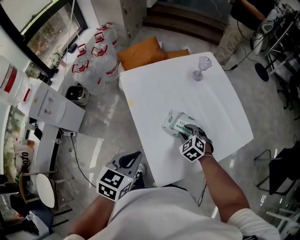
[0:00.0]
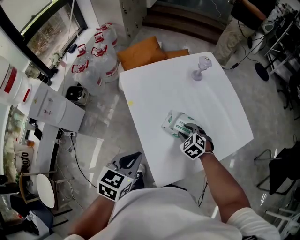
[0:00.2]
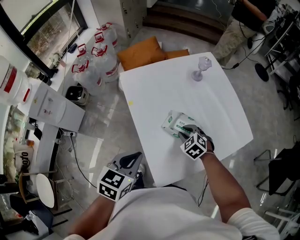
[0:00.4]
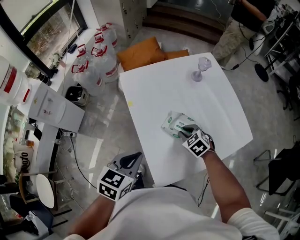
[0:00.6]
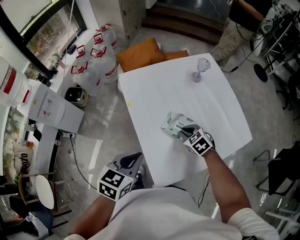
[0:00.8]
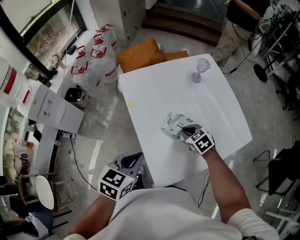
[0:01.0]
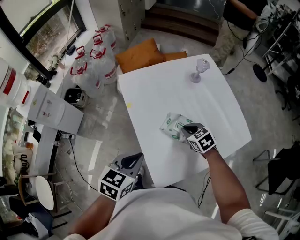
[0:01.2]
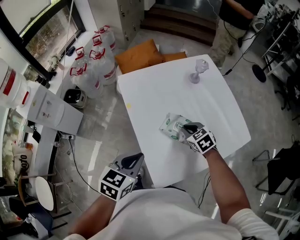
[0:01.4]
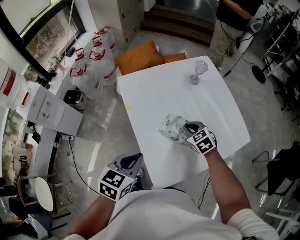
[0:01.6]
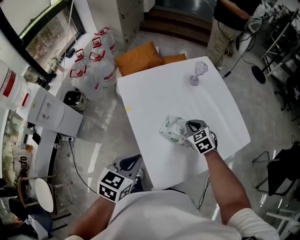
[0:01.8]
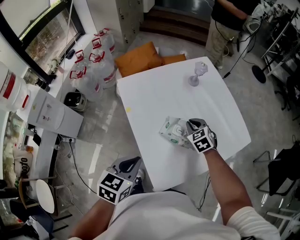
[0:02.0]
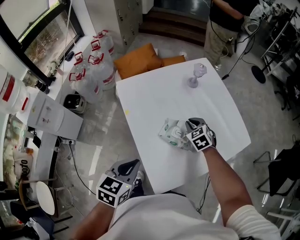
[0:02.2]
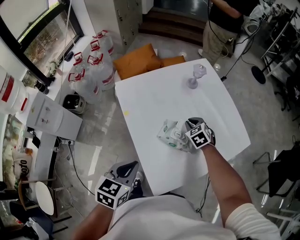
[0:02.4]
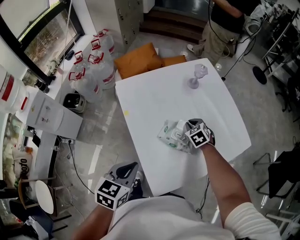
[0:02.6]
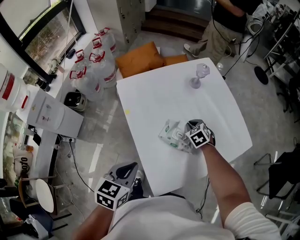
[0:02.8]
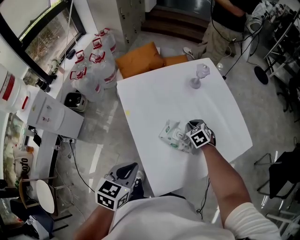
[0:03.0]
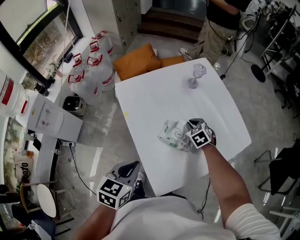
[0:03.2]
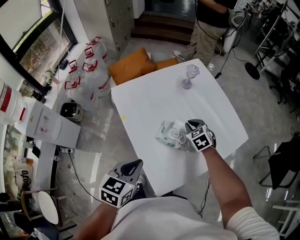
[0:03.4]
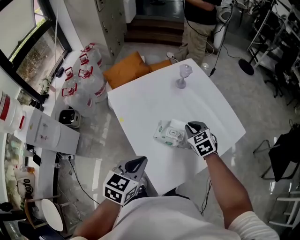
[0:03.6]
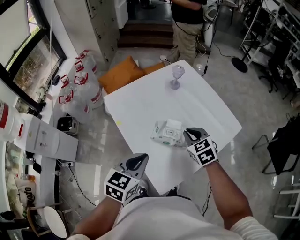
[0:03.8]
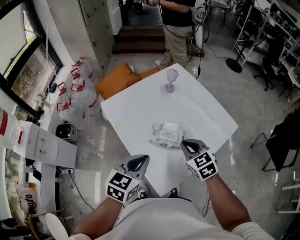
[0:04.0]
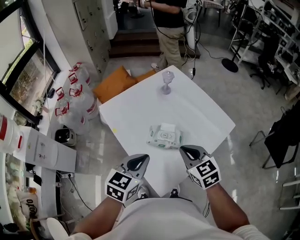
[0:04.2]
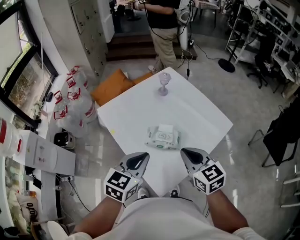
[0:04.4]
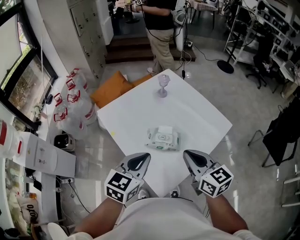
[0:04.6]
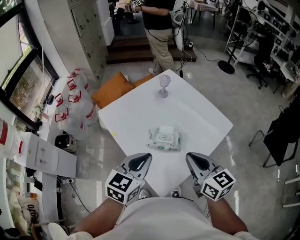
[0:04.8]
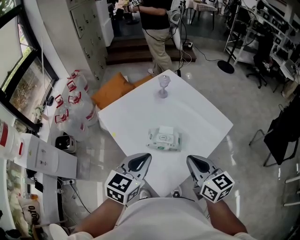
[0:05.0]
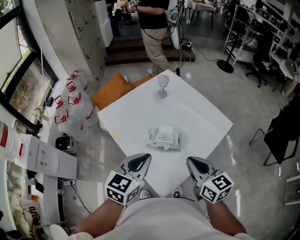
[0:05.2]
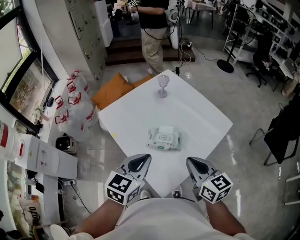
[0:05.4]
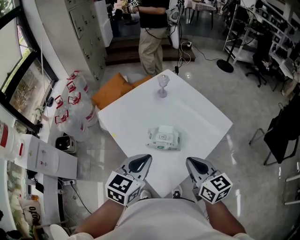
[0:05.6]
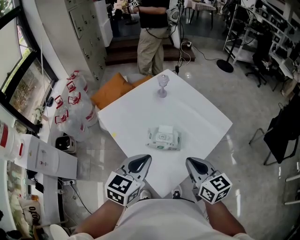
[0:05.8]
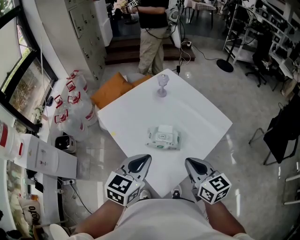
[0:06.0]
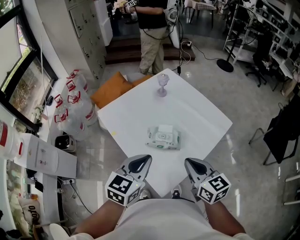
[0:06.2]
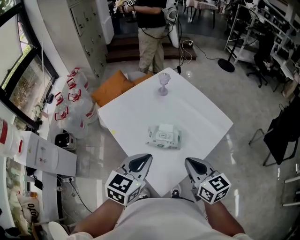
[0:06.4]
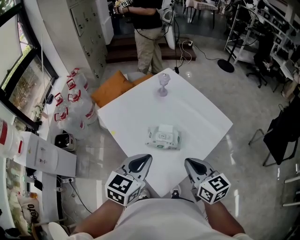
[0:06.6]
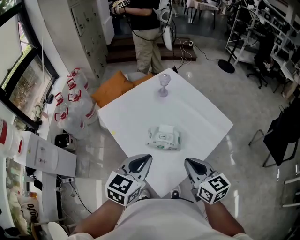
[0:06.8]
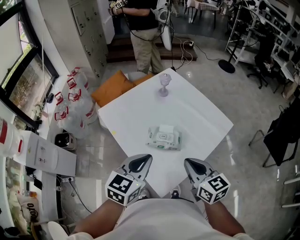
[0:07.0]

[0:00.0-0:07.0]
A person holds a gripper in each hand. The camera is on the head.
0.0 to 1.4 s: The right gripper swivels some 20 degrees, and closes up.
1.4 to 2.8 s: The right gripper shifts some 10 cm forward and downward.
2.8 to 4.2 s: The right gripper heads upward and backward, covering approximately 30 cm, and turns by roughly 30 degrees. The left gripper travels upward and to the right by about 10 cm, and changes its angle by about 20 degrees.
4.2 to 5.6 s: The right gripper heads backward, covering roughly 5 cm, and rotates about 30 degrees.
5.6 to 7.0 s: Both grippers stay put.

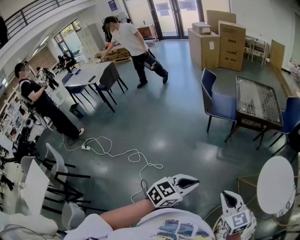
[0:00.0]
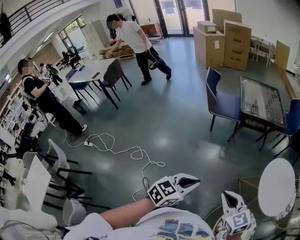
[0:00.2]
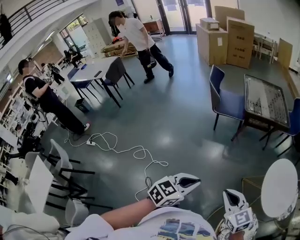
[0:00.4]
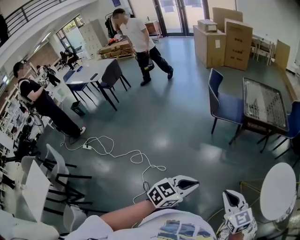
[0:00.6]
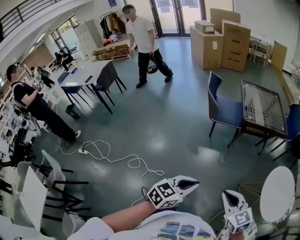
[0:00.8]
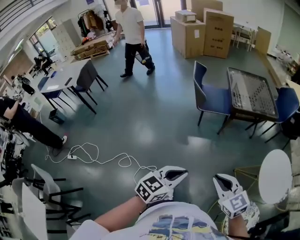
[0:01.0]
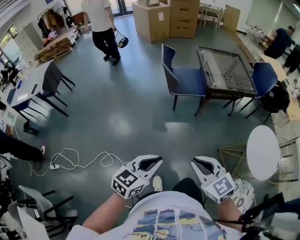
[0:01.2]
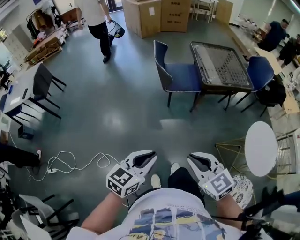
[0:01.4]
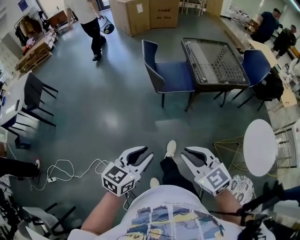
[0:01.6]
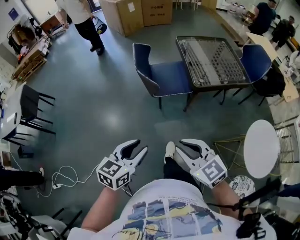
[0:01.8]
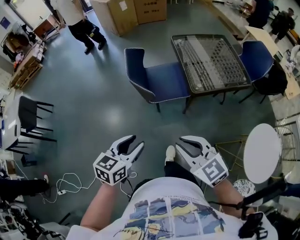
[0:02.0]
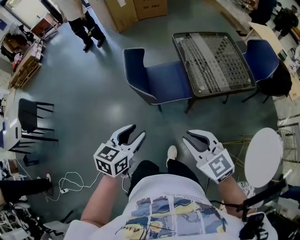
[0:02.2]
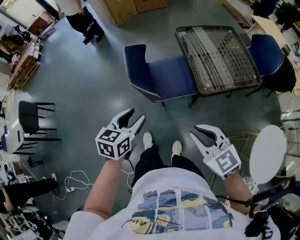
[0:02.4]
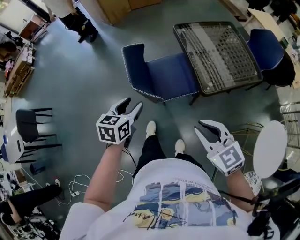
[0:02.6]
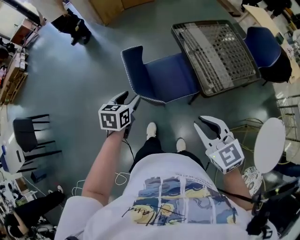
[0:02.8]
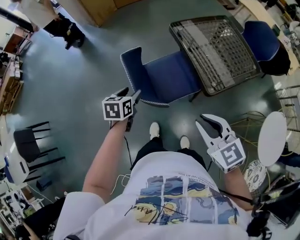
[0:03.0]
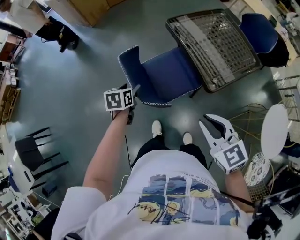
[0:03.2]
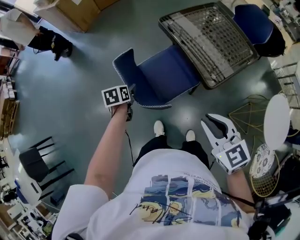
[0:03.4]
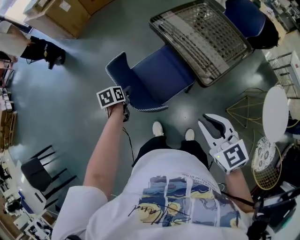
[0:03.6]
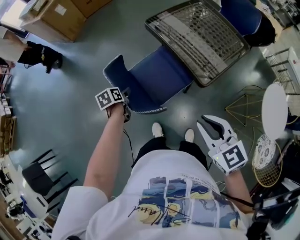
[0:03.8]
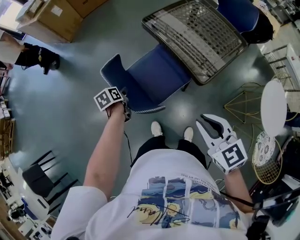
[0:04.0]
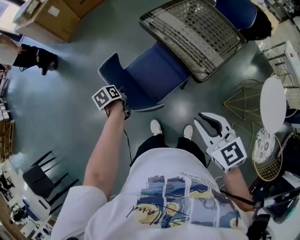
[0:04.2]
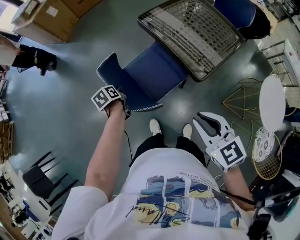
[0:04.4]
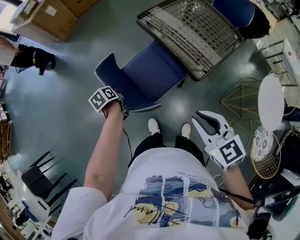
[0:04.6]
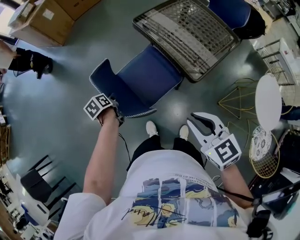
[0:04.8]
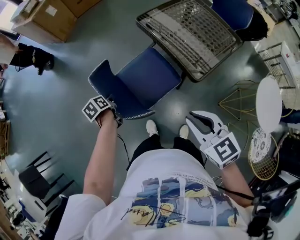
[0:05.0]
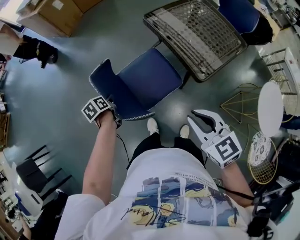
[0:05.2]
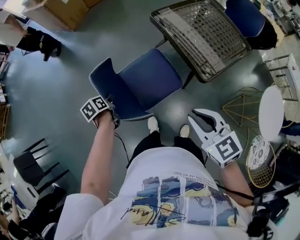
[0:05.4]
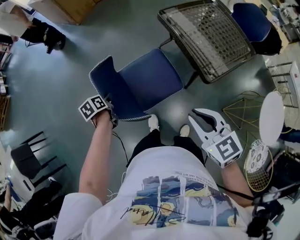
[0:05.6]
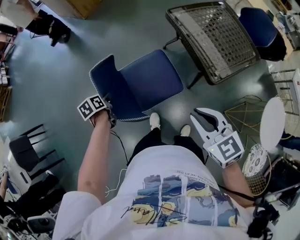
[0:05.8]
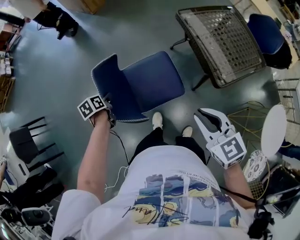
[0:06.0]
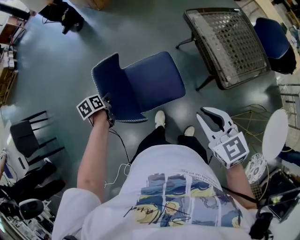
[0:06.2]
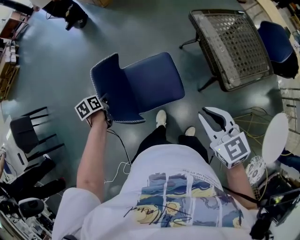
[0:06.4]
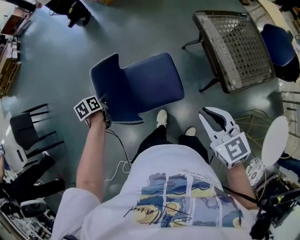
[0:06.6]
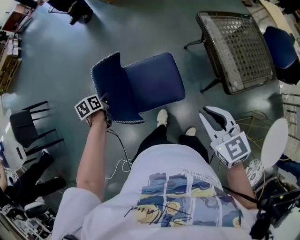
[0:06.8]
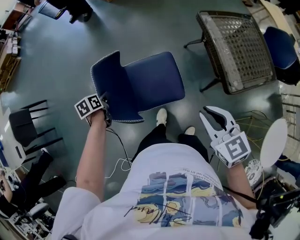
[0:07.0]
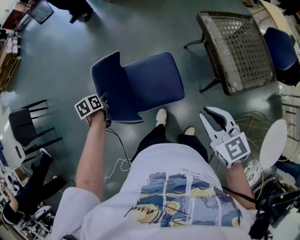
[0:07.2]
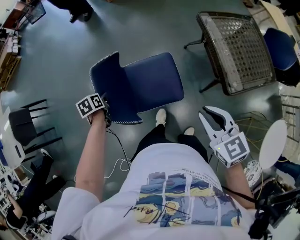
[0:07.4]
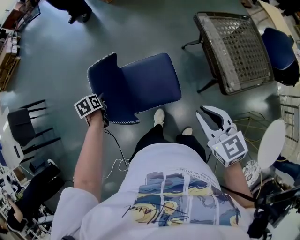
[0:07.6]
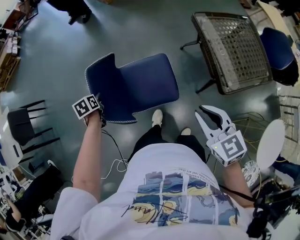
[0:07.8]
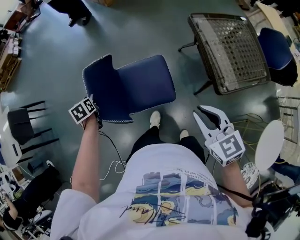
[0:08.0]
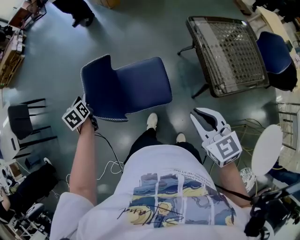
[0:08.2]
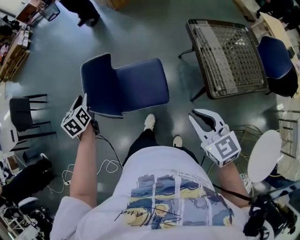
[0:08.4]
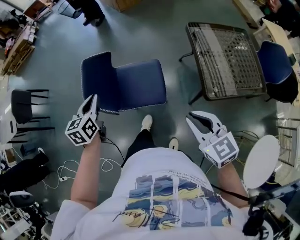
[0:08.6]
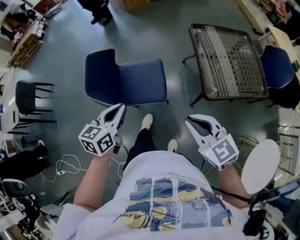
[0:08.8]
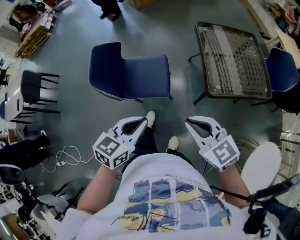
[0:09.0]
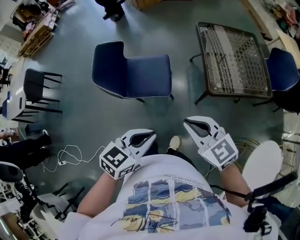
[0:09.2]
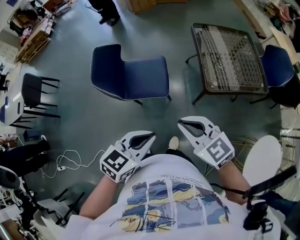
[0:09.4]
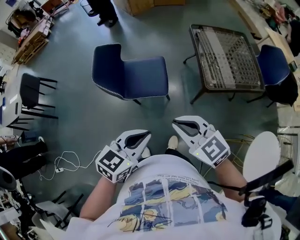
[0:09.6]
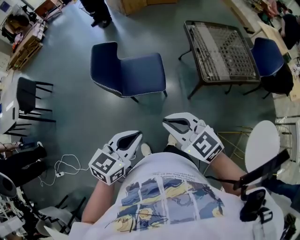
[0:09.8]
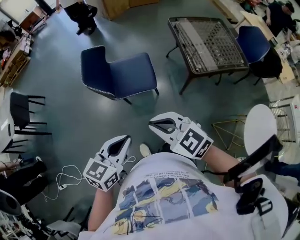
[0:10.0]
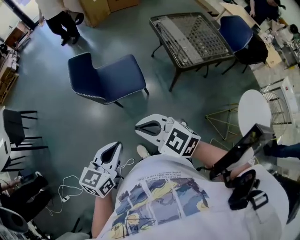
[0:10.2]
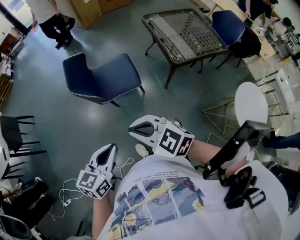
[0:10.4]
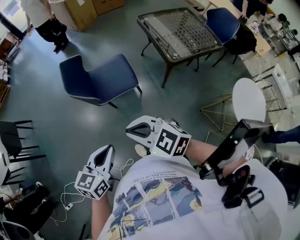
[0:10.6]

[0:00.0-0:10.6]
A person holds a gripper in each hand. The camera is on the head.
0.0 to 1.6 s: The pair of grippers is taken forward and to the left, roughly 40 cm.
1.6 to 3.0 s: The pair of grippers is taken forward, about 60 cm. The left gripper turns by about 20 degrees, and opens, while the right gripper changes its angle by about 20 degrees.
3.0 to 4.6 s: The left gripper heads downward and forward, covering approximately 15 cm, turns by some 30 degrees, and closes up.
4.6 to 6.0 s: The left gripper is displaced to the left and backward by about 20 cm; the right gripper moves to the left, roughly 10 cm.
6.0 to 7.6 s: The left gripper travels to the left by some 10 cm.
7.6 to 9.0 s: The left gripper moves backward, to the right and upward, roughly 60 cm, angles its fingers upward, by roughly 40 degrees, and closes its fingers, while the right gripper travels backward by some 20 cm, and rotates approximately 20 degrees.
9.0 to 10.6 s: The right gripper heads to the left and backward, covering approximately 30 cm. Meanwhile the left gripper goes some 30 cm backward and to the left.

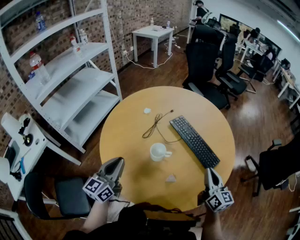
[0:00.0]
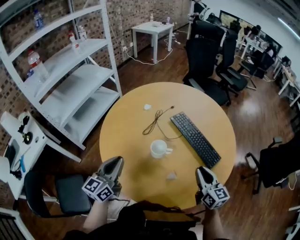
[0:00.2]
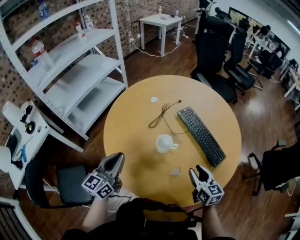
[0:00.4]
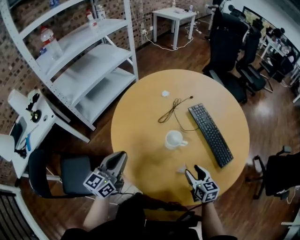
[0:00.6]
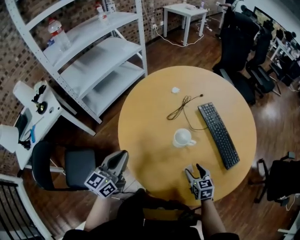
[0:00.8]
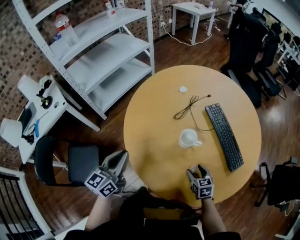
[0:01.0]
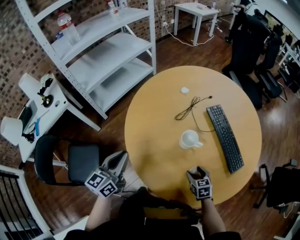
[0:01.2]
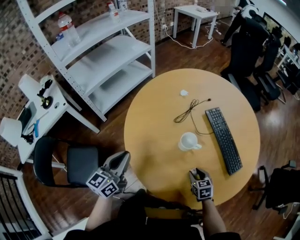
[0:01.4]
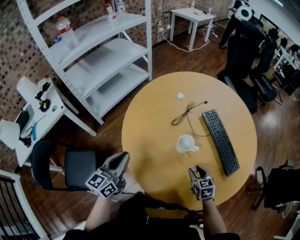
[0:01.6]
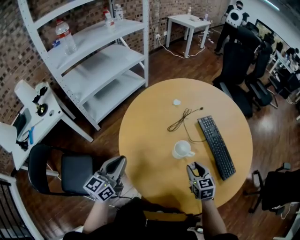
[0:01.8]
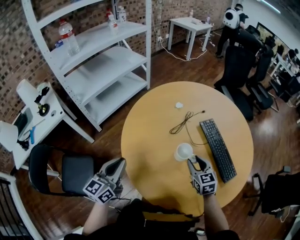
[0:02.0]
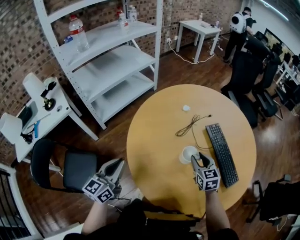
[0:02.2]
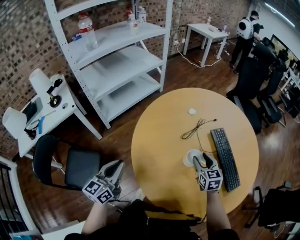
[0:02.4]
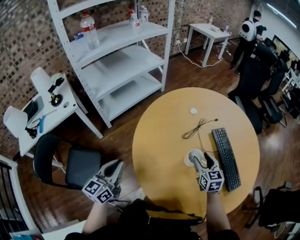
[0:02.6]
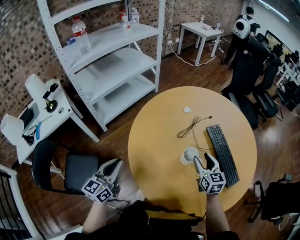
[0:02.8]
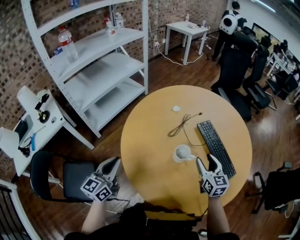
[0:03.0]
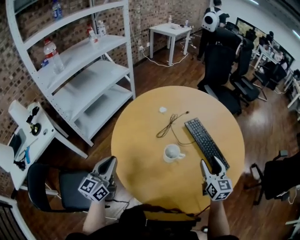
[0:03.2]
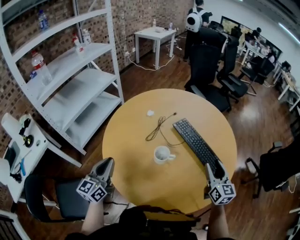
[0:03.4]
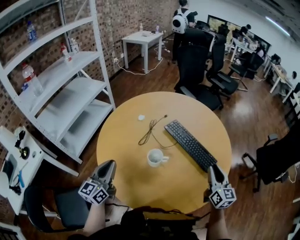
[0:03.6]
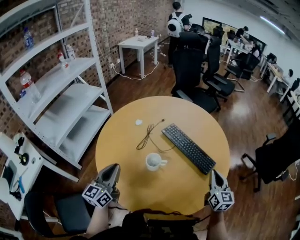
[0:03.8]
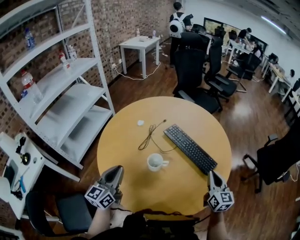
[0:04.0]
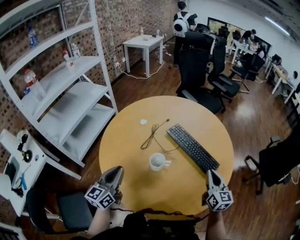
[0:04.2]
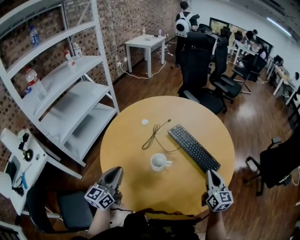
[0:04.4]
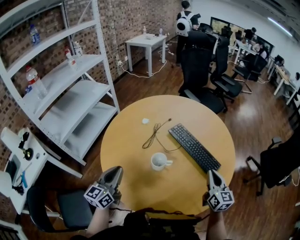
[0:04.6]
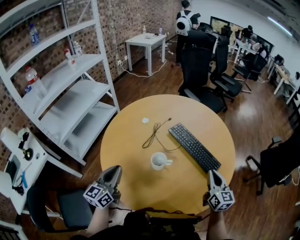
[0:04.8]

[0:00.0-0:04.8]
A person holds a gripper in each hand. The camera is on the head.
0.0 to 1.6 s: The left gripper moves to the left, some 10 cm. The right gripper shifts roughly 20 cm downward and to the left, points its fingers about 40 degrees further downward, and opens its fingers.
1.6 to 3.2 s: The right gripper travels upward and to the right by about 20 cm, changes its angle by some 30 degrees, and opens up.
3.2 to 4.8 s: The two grippers go some 5 cm to the right. The right gripper closes its fingers.

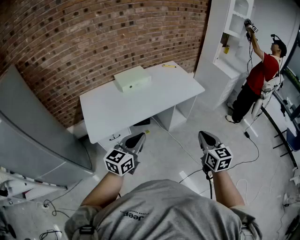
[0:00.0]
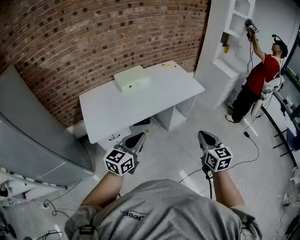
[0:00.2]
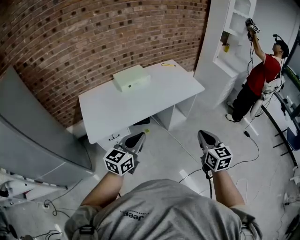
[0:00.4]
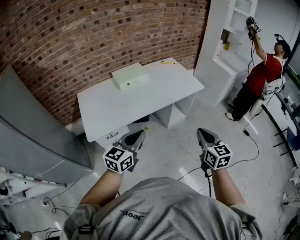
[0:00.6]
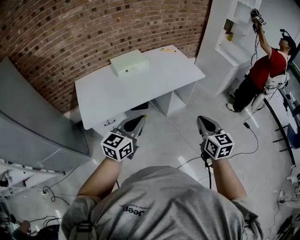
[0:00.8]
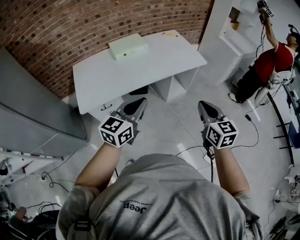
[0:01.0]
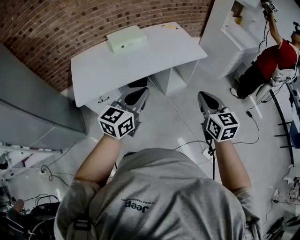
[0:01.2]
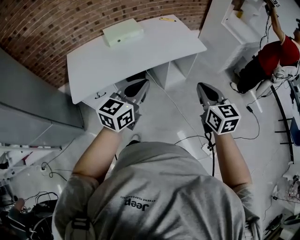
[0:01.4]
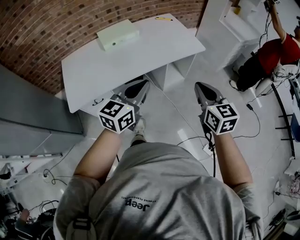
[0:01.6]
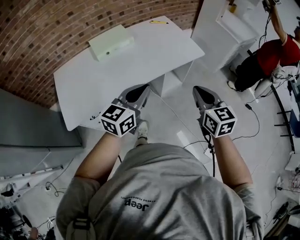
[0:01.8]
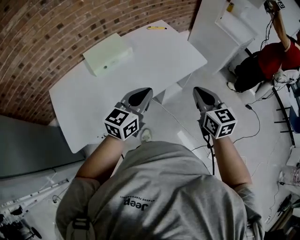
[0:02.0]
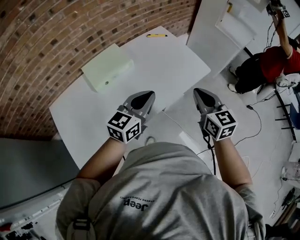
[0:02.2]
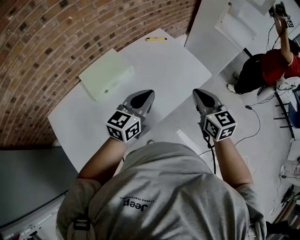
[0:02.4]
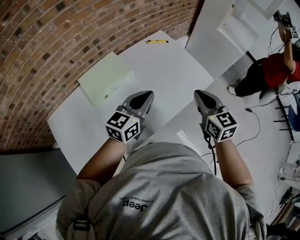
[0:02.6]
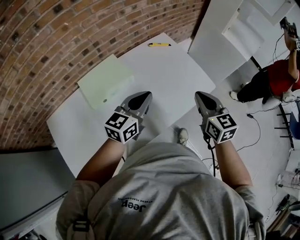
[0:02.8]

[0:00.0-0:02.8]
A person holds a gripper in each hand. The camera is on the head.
0.0 to 1.4 s: The right gripper goes roughly 10 cm forward and to the right, while the left gripper heads to the right and forward, covering about 15 cm.
1.4 to 2.8 s: The two grippers travel together, forward, roughly 50 cm.
